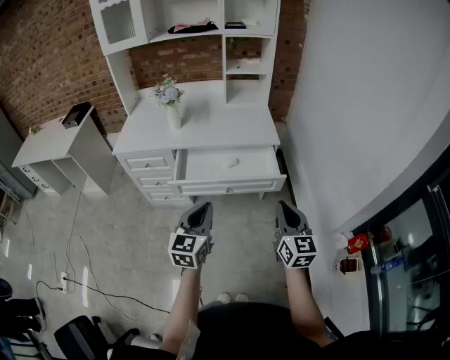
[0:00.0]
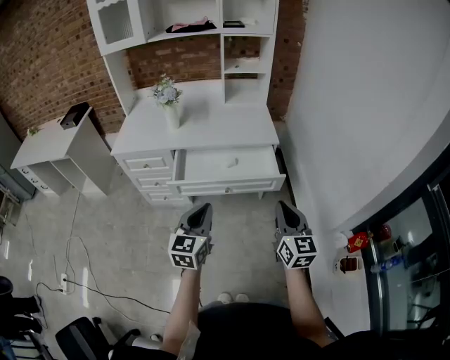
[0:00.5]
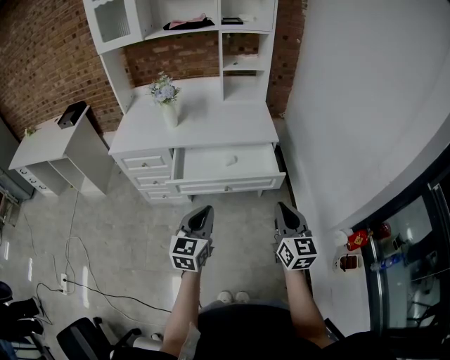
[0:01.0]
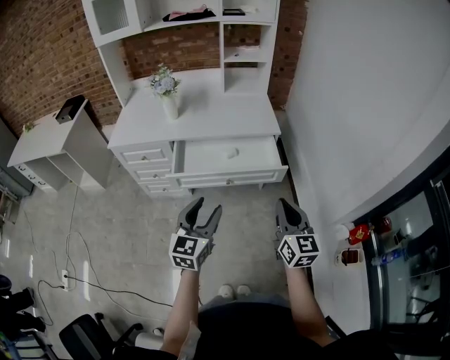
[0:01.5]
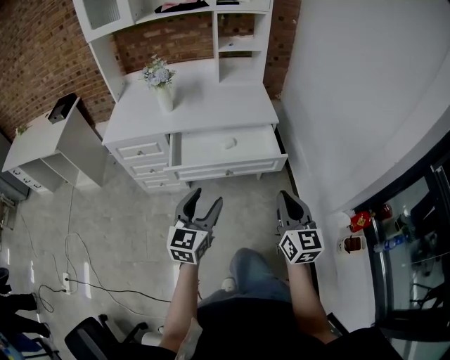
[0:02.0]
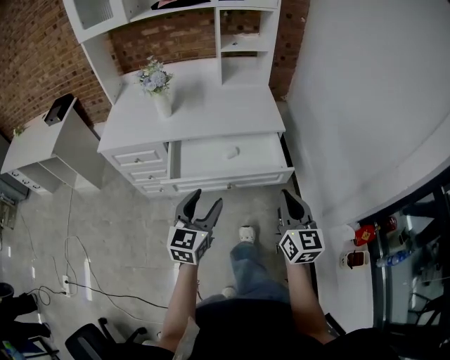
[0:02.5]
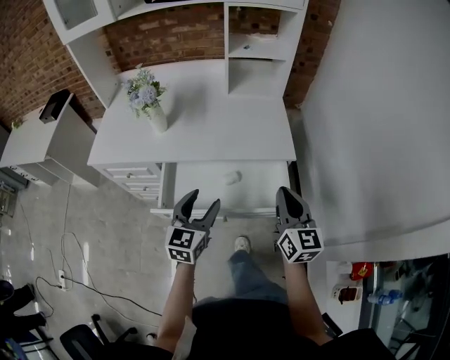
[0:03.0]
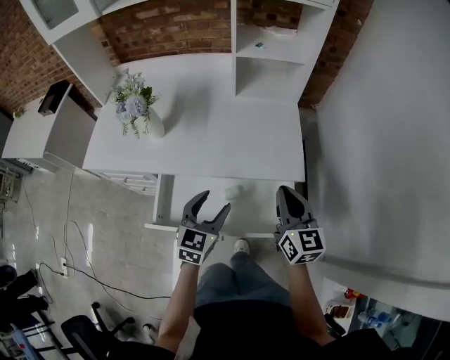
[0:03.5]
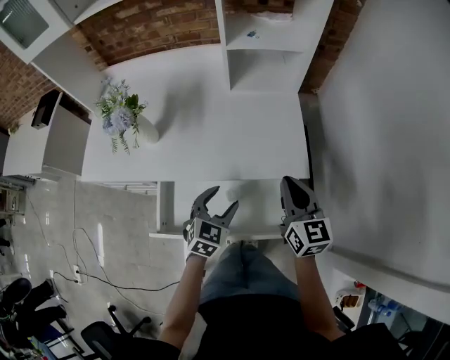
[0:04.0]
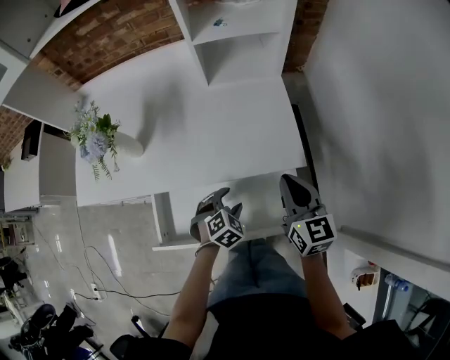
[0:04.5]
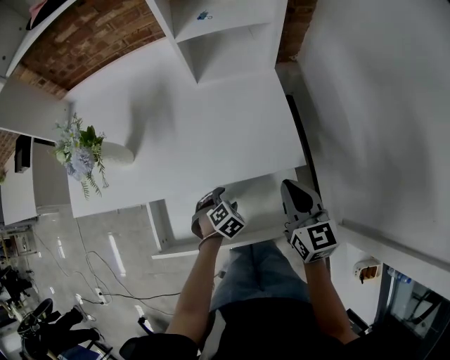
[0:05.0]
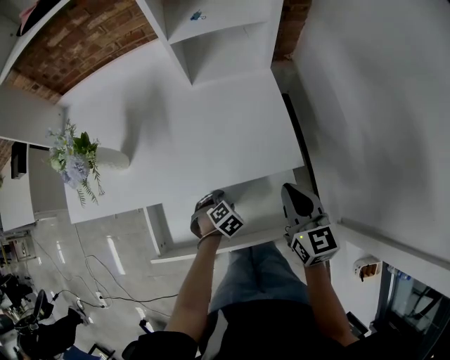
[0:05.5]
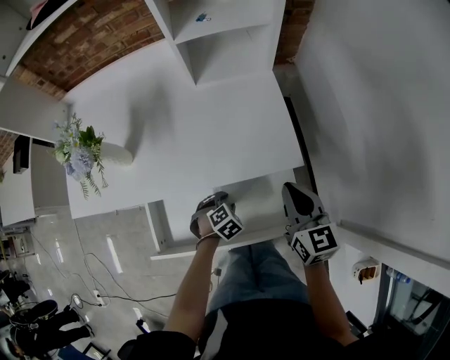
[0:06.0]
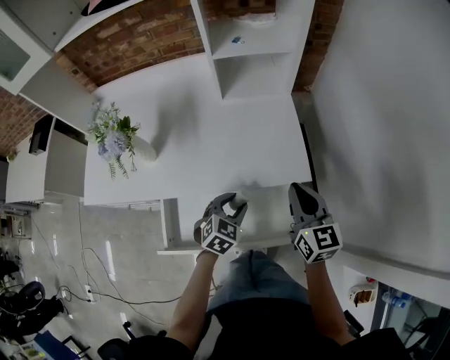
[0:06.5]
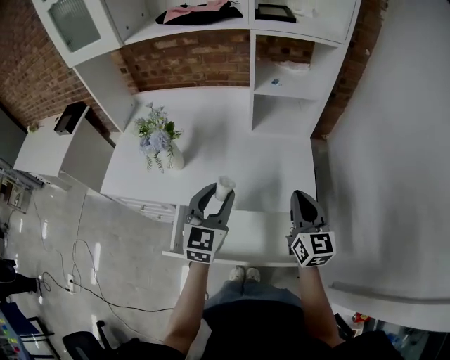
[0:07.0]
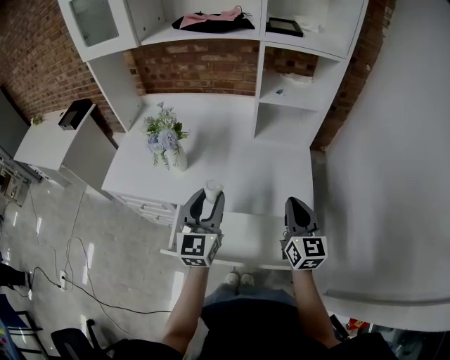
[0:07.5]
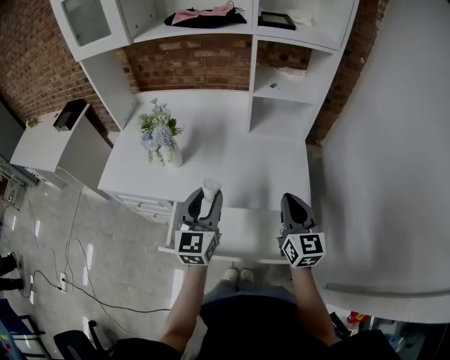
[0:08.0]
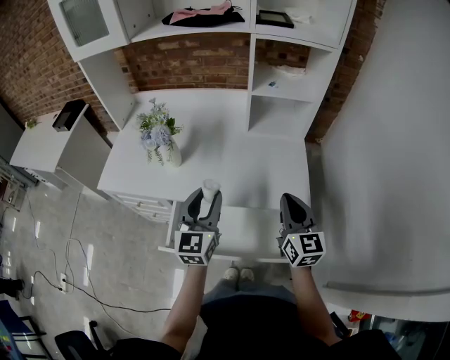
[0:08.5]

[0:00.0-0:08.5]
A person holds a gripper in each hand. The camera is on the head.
0:00.0 to 0:02.0: The left gripper opens up.
0:02.0 to 0:04.0: Both grippers travel together forward, approximately 40 cm. The left gripper changes its angle by approximately 30 degrees.
0:04.0 to 0:06.5: The left gripper moves about 20 cm downward and comes back.
0:06.5 to 0:08.5: The left gripper heads upward and to the left, covering roughly 25 cm, and tilts its fingers approximately 40 degrees upward. Meanwhile the right gripper is displaced upward and to the left by about 10 cm.

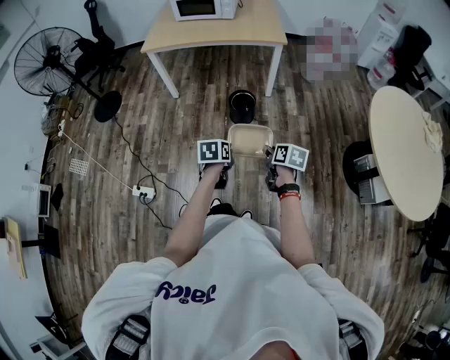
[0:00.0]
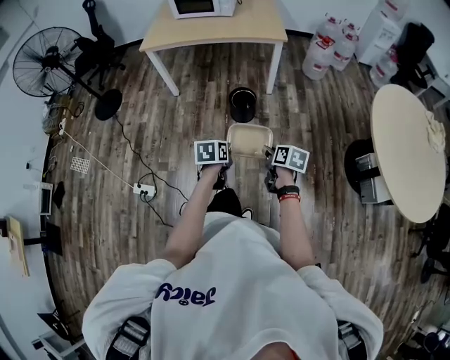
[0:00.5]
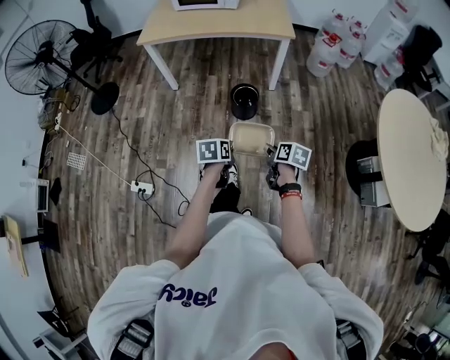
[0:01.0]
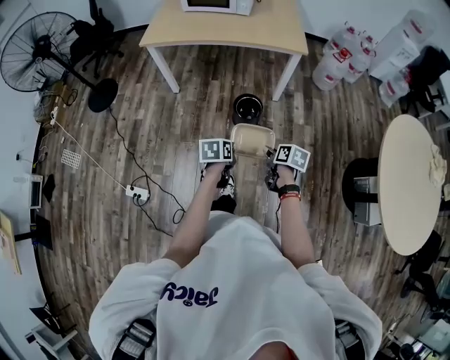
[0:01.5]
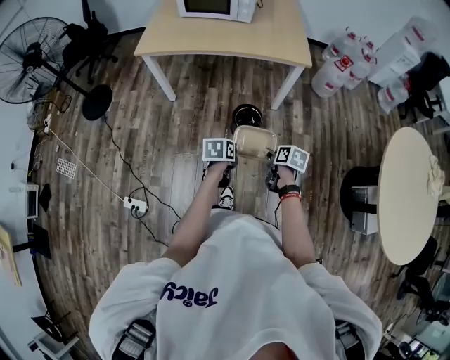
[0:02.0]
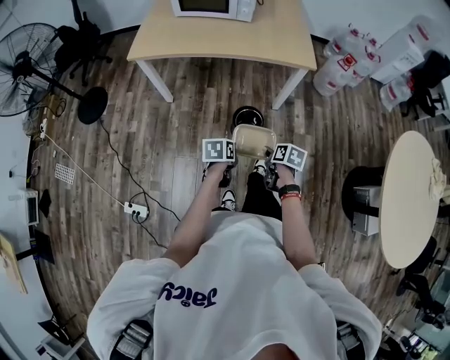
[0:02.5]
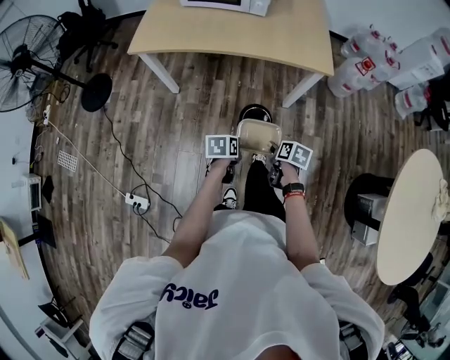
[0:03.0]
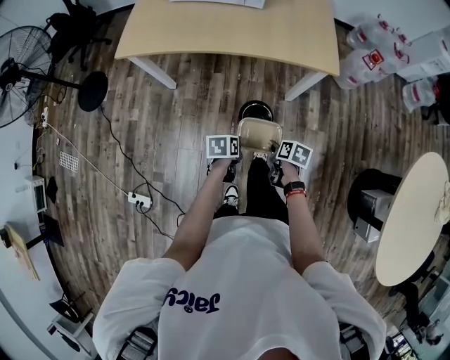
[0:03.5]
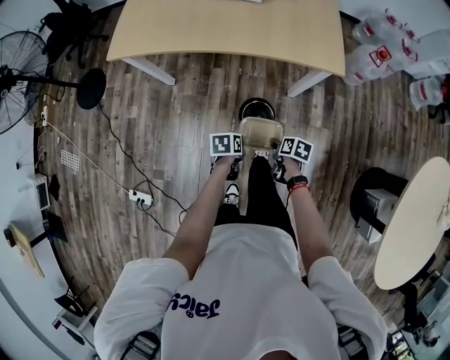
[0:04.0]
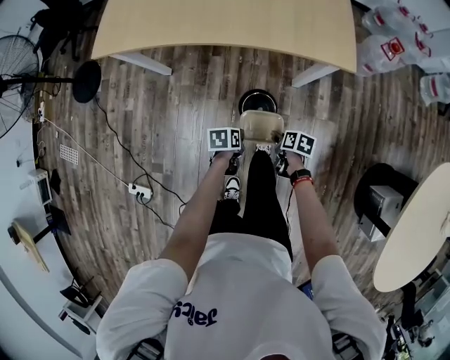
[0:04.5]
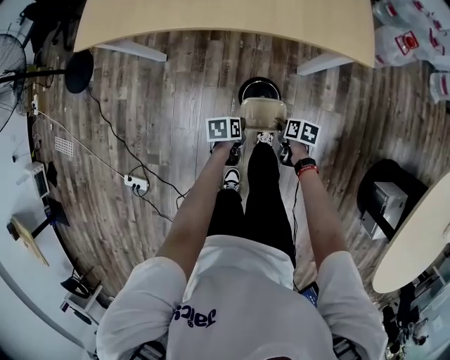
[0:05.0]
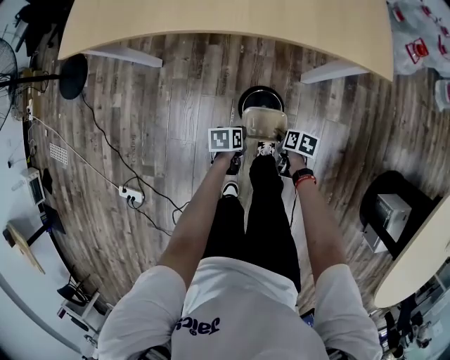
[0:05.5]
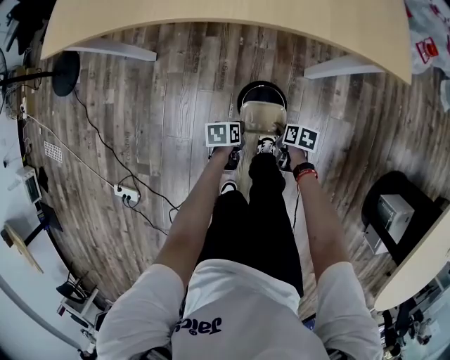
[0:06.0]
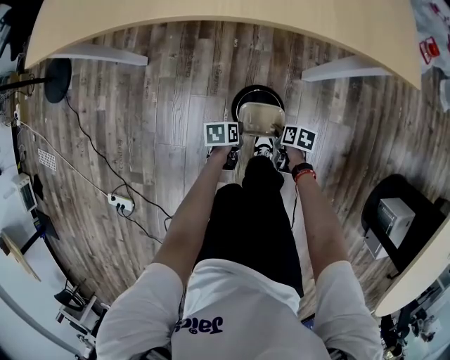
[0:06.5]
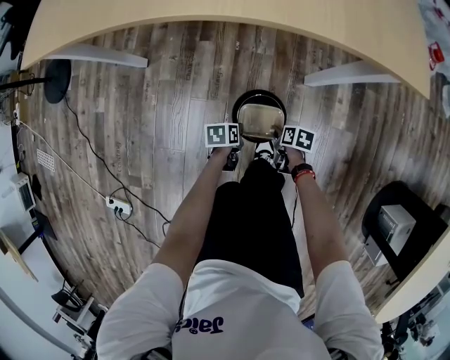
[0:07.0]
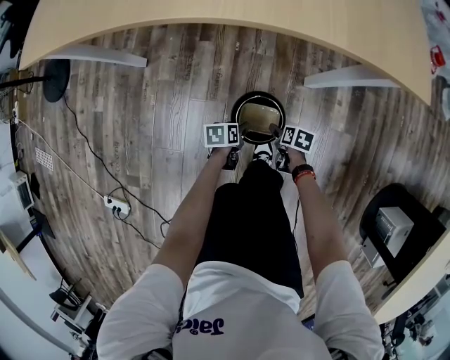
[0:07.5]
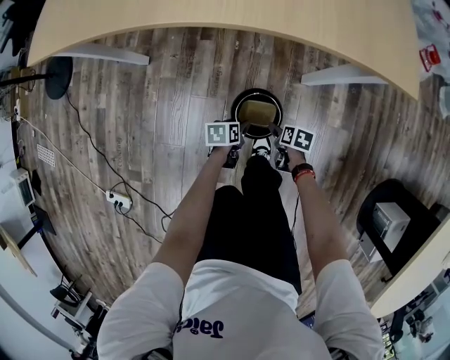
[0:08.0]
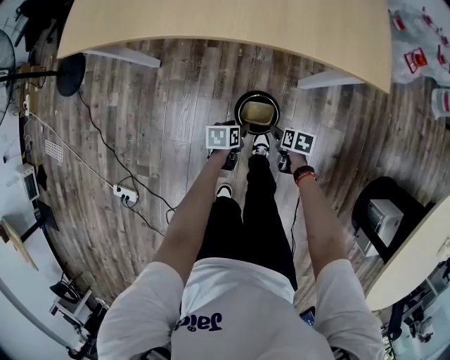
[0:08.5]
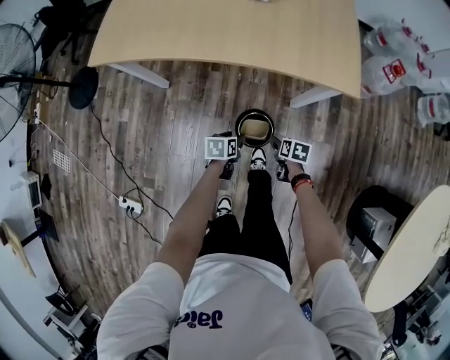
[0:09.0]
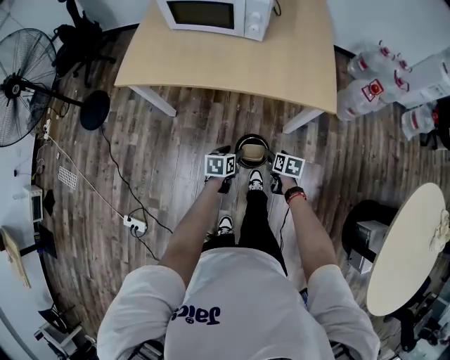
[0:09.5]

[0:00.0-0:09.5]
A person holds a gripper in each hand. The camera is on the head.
0:00.0 to 0:02.0: The grippers both shift forward by some 35 cm.
0:02.0 to 0:04.0: The grippers both shift forward and downward by roughly 40 cm.
0:04.0 to 0:05.5: The two grippers go about 30 cm downward.
0:05.5 to 0:07.5: The two grippers go some 20 cm downward. The right gripper opens. The left gripper opens its fingers.
0:07.5 to 0:09.5: Both grippers move upward, some 50 cm. The left gripper swivels about 20 degrees.

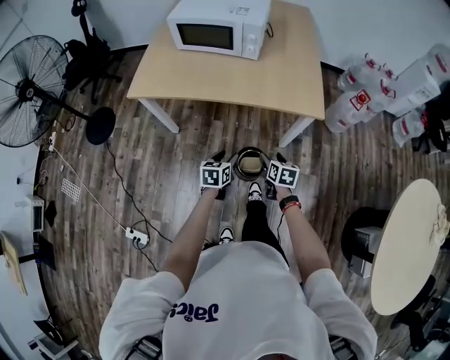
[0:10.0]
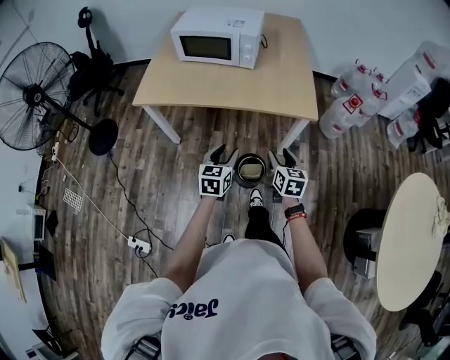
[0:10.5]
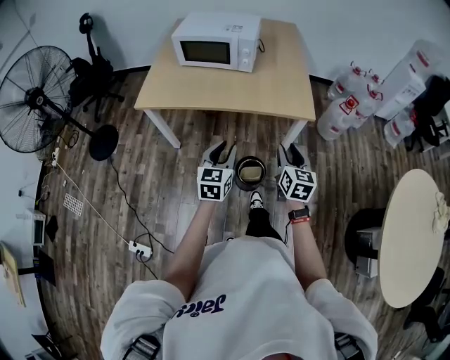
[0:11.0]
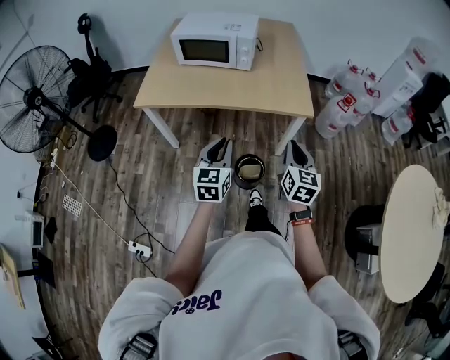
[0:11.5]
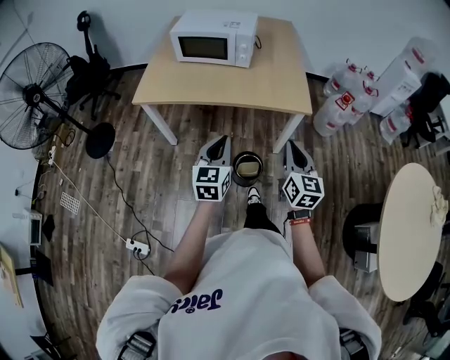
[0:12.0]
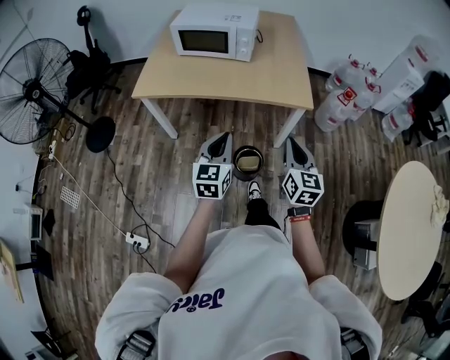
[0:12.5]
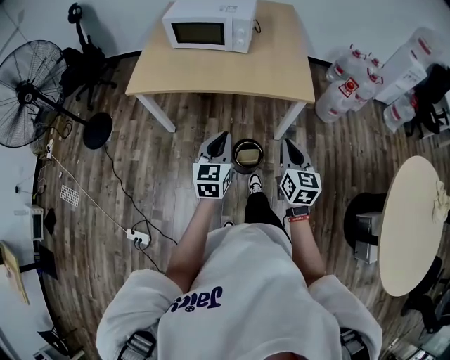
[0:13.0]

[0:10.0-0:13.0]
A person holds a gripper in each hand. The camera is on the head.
0:10.0 to 0:11.5: Both grippers travel together upward and backward, roughly 25 cm. The right gripper turns by roughly 30 degrees, and closes; the left gripper changes its angle by approximately 30 degrees, and closes.
0:11.5 to 0:13.0: The grippers make only small movements.

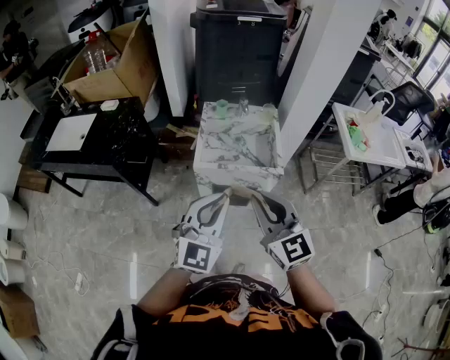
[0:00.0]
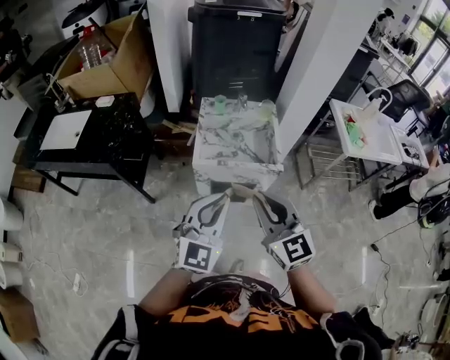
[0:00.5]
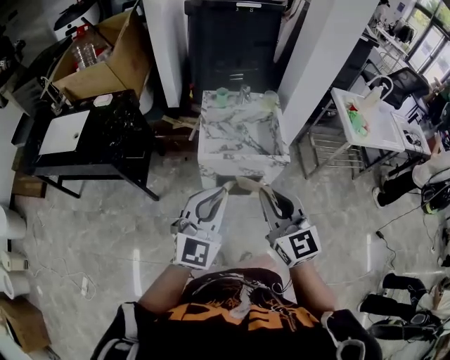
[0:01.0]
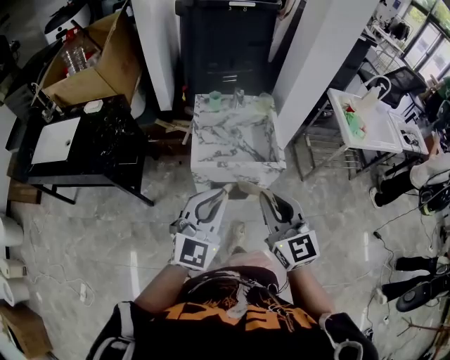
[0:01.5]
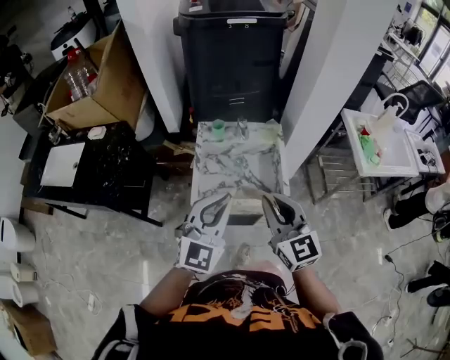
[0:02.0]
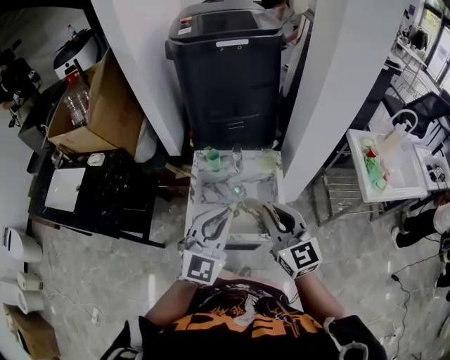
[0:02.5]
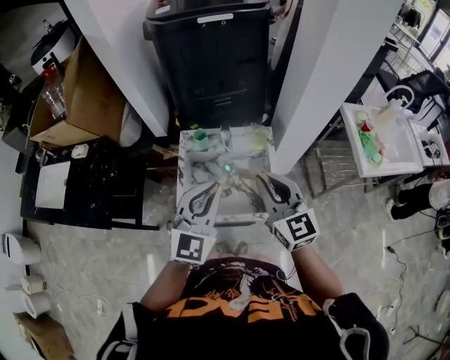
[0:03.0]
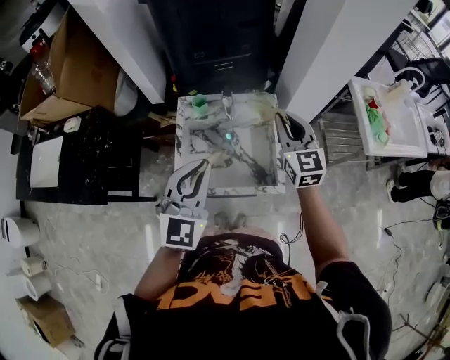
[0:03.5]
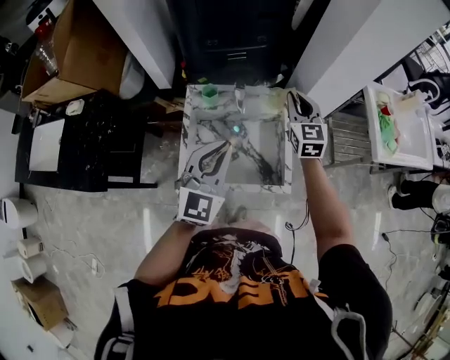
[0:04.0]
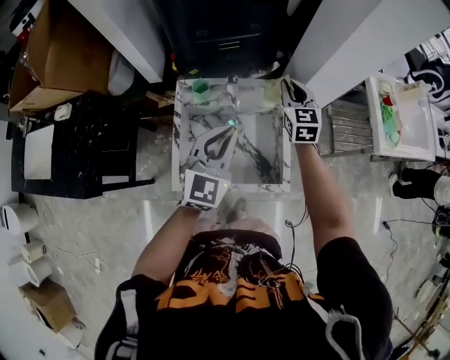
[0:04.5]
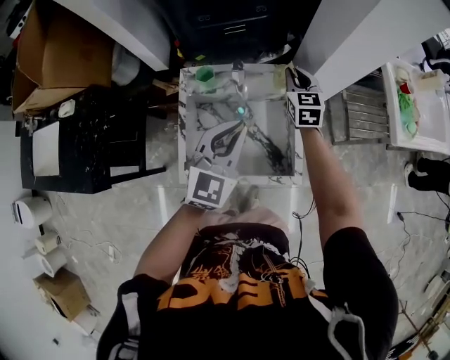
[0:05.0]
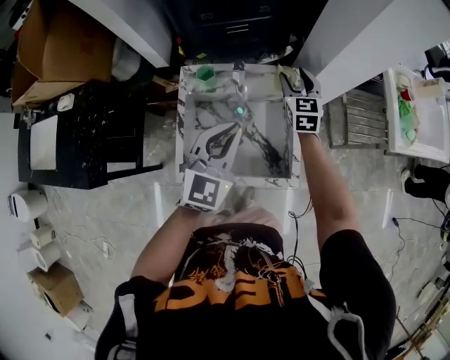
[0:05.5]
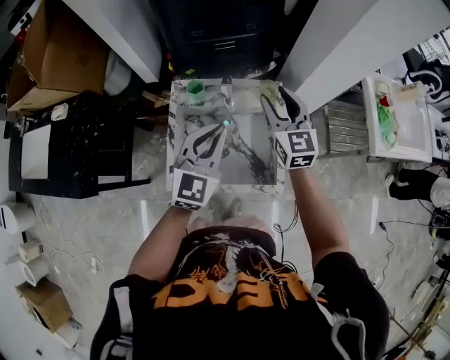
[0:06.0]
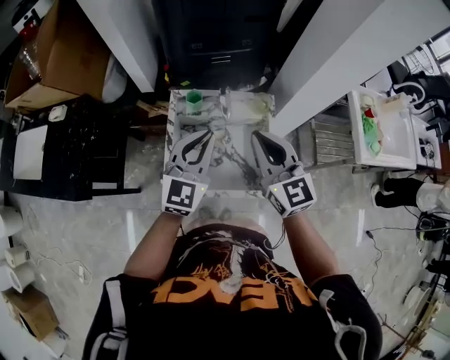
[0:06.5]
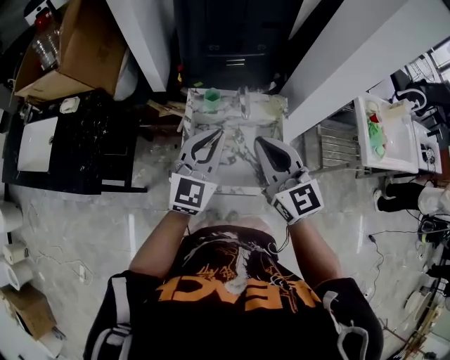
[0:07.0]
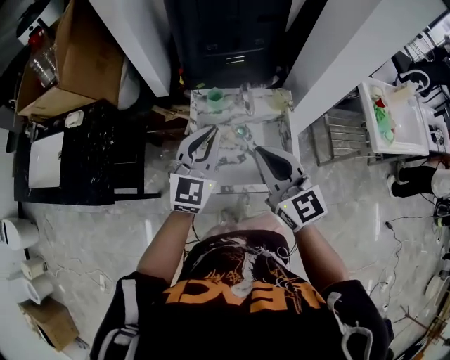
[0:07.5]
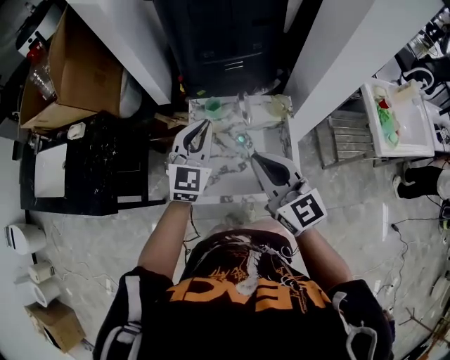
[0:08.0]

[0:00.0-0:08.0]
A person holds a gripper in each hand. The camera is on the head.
0:00.0 to 0:02.0: Both grippers travel together forward, roughly 20 cm.
0:02.0 to 0:04.0: The right gripper travels forward by some 35 cm. The left gripper shifts some 20 cm forward.
0:04.0 to 0:06.0: The left gripper goes some 5 cm forward. Meanwhile the right gripper goes downward and returns, about 10 cm each way, and opens.
0:06.0 to 0:08.0: The right gripper is displaced backward, to the left and upward by approximately 25 cm, and closes its fingers, while the left gripper goes some 10 cm to the left.
